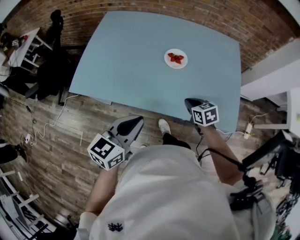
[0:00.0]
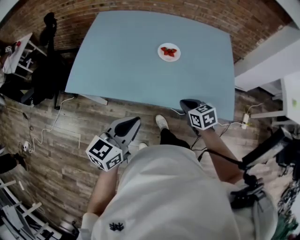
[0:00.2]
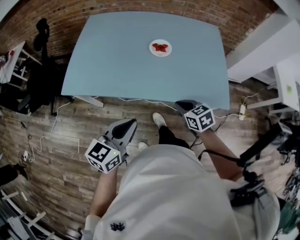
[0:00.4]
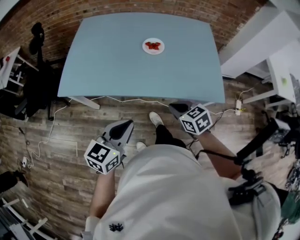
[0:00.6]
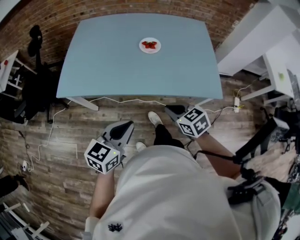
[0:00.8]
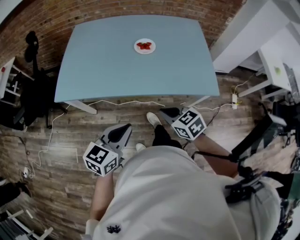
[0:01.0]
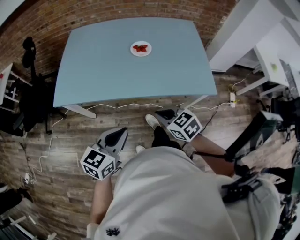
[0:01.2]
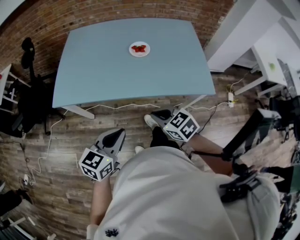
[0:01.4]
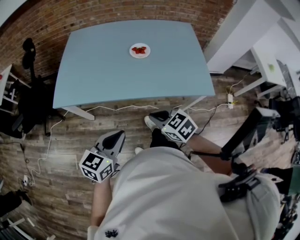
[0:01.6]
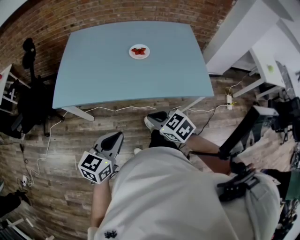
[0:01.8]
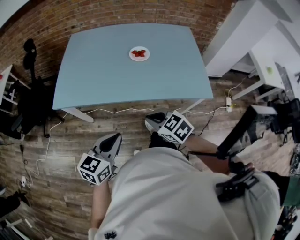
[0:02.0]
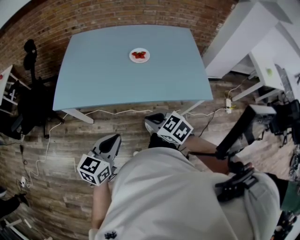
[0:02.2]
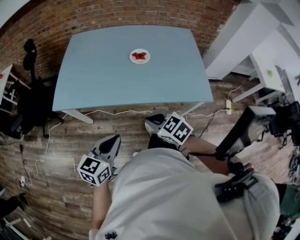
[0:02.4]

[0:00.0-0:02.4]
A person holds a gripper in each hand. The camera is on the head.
0:00.0 to 0:01.2: The left gripper moves backward, roughly 15 cm, while the right gripper goes roughly 20 cm backward.
0:01.2 to 0:02.4: The grippers make only small movements.

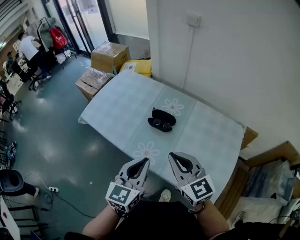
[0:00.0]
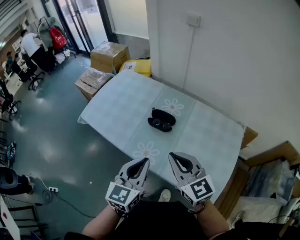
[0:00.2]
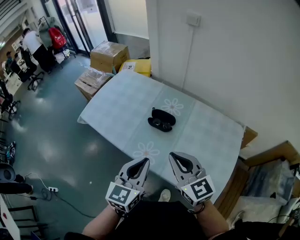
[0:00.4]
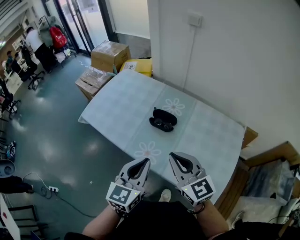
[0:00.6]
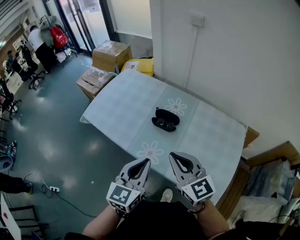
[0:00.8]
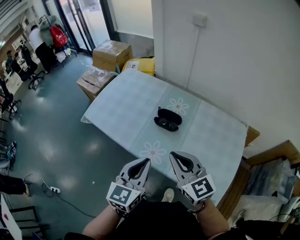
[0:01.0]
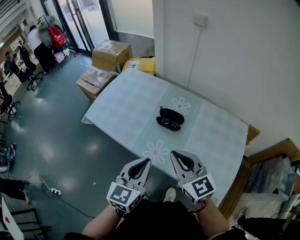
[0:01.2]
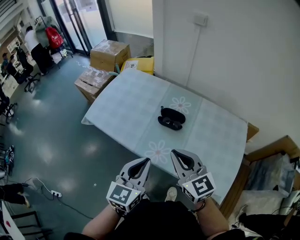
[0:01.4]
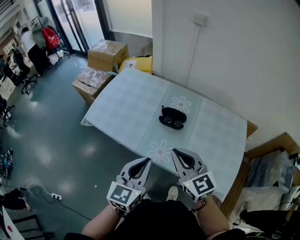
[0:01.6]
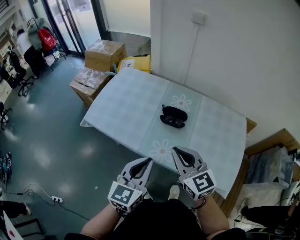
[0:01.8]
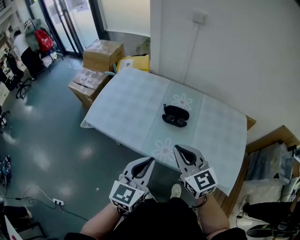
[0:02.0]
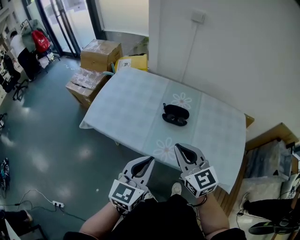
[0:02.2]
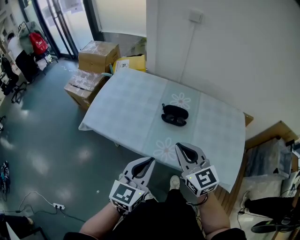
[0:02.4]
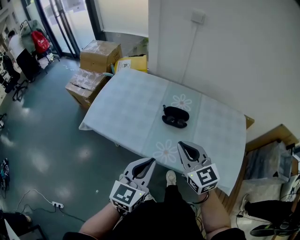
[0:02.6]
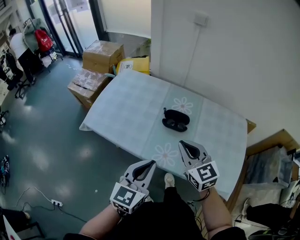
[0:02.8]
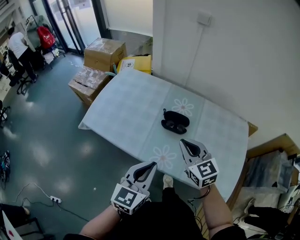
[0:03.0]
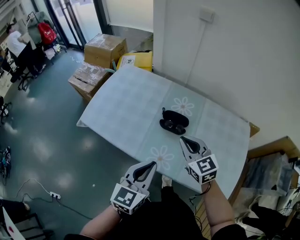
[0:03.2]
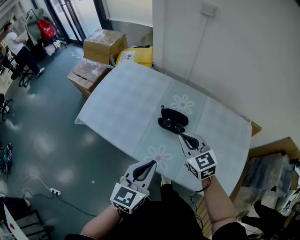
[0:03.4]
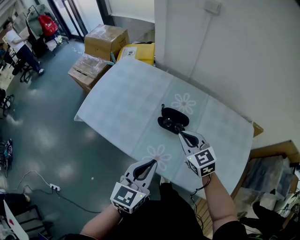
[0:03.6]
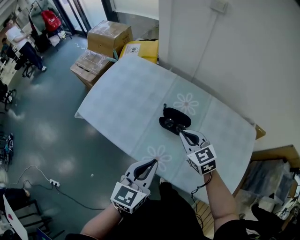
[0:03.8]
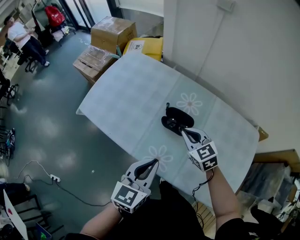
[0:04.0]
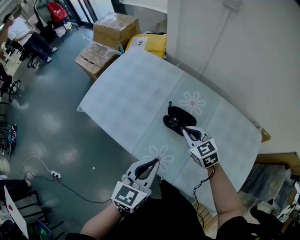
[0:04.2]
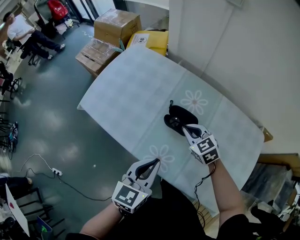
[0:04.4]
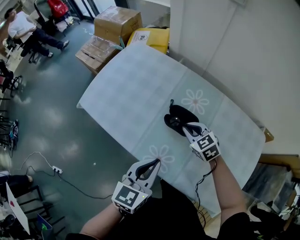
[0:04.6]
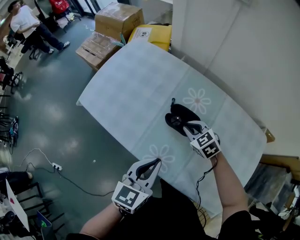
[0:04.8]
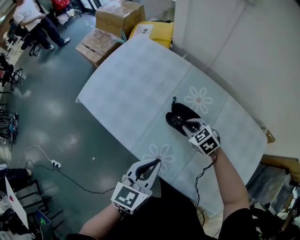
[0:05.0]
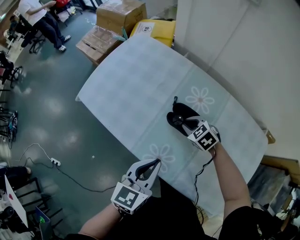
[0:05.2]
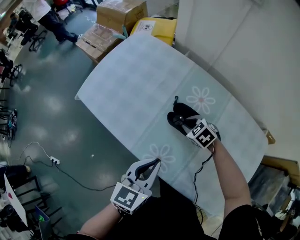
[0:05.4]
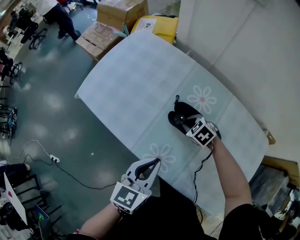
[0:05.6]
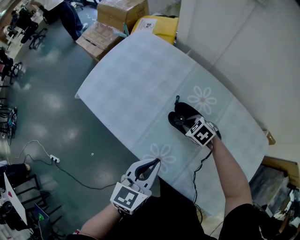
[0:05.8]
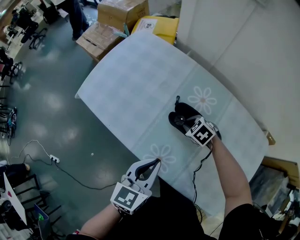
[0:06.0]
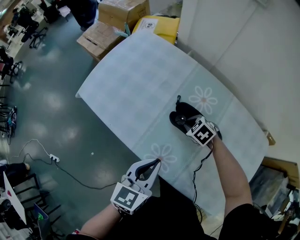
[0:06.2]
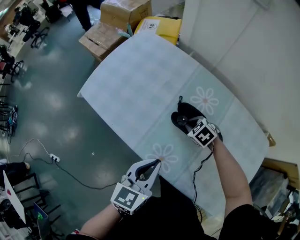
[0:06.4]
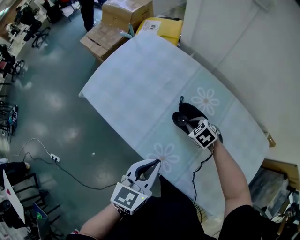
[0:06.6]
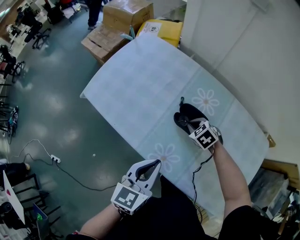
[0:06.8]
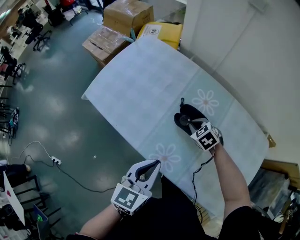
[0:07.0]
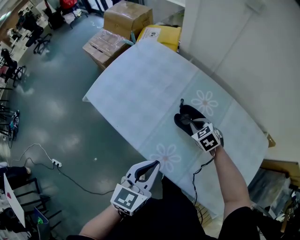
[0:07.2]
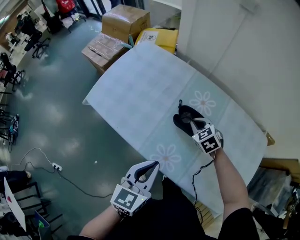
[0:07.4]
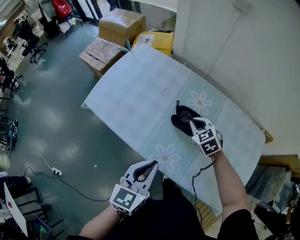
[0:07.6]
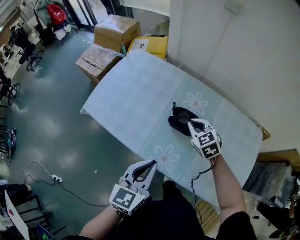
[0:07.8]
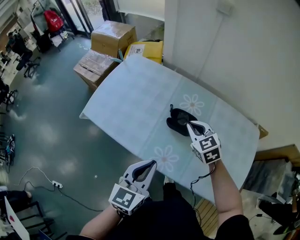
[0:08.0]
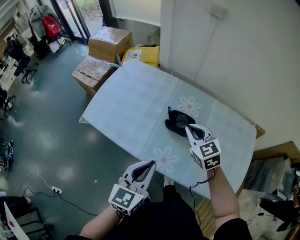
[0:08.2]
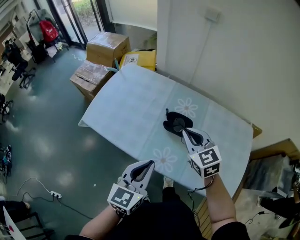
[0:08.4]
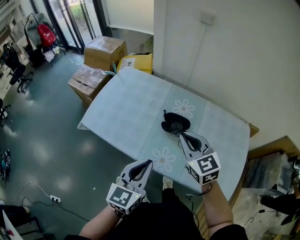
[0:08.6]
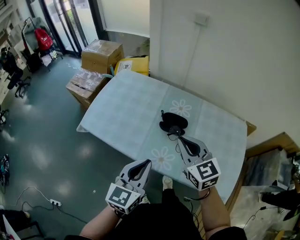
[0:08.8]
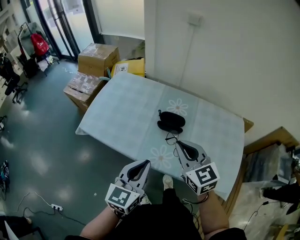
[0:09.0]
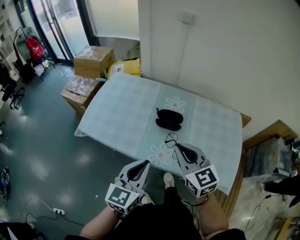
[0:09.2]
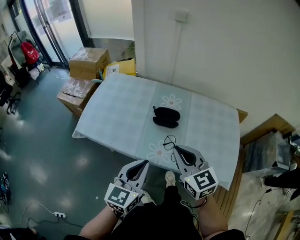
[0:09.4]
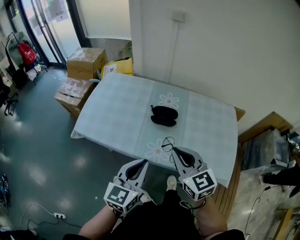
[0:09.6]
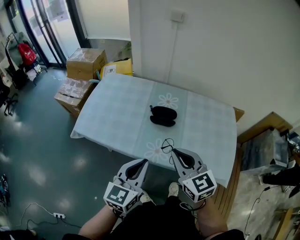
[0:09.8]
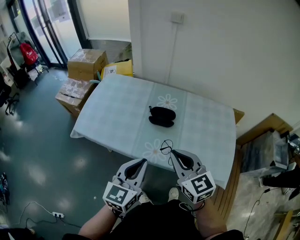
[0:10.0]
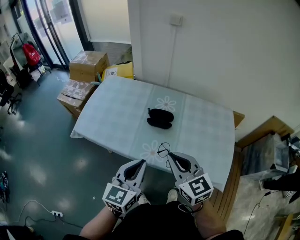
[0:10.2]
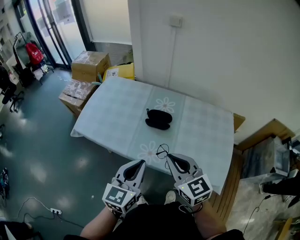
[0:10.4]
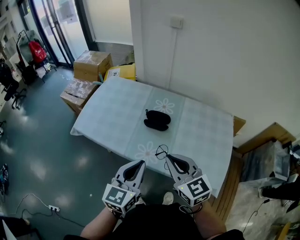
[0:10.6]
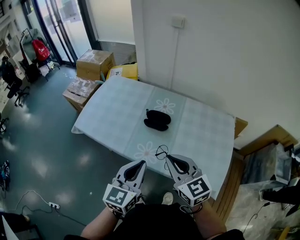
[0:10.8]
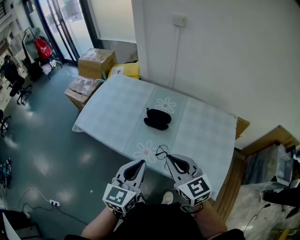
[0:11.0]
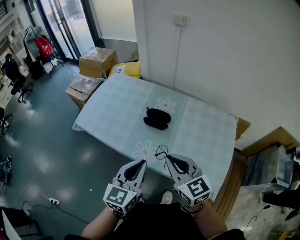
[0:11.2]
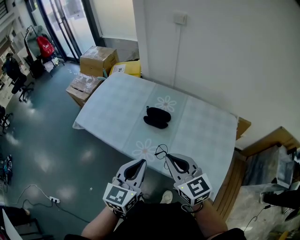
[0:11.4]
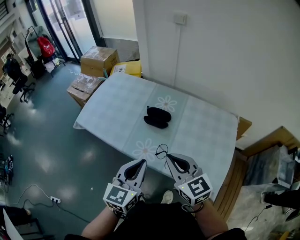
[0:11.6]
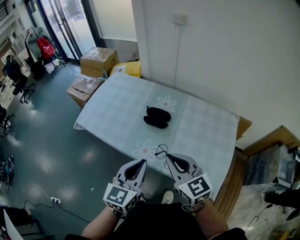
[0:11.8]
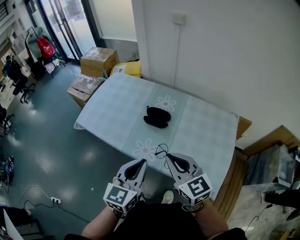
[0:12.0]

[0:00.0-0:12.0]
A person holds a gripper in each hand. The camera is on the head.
0:00.0 to 0:01.6: Both grippers move to the left, about 10 cm.
0:01.6 to 0:03.0: The right gripper is displaced forward by about 10 cm.
0:03.0 to 0:04.4: The left gripper travels forward, downward and to the right by roughly 10 cm; the right gripper heads downward and forward, covering roughly 20 cm, and swivels about 30 degrees.
0:04.4 to 0:06.0: The right gripper is displaced downward by about 10 cm, and turns by approximately 30 degrees.
0:06.0 to 0:07.6: The left gripper shifts by roughly 5 cm. The right gripper is displaced upward by approximately 10 cm, and swivels approximately 30 degrees.
0:07.6 to 0:09.0: The left gripper is displaced upward and backward by some 10 cm. Meanwhile the right gripper moves upward and backward, approximately 30 cm, and tilts its fingers roughly 30 degrees upward.
0:09.0 to 0:10.4: The right gripper travels backward by roughly 10 cm. The left gripper moves roughly 5 cm.
0:10.4 to 0:12.0: Both grippers move to the right, some 5 cm.

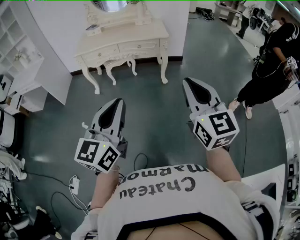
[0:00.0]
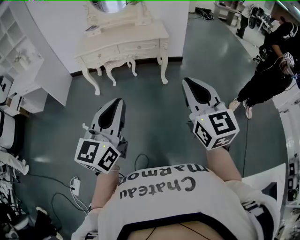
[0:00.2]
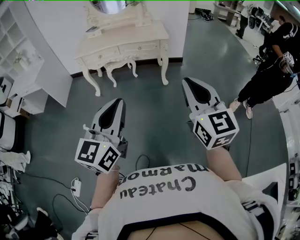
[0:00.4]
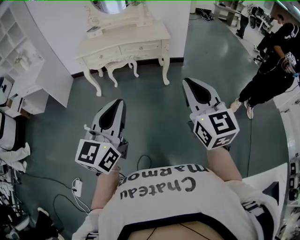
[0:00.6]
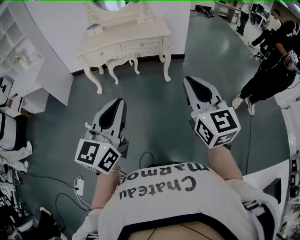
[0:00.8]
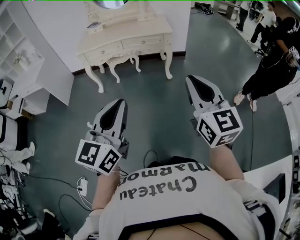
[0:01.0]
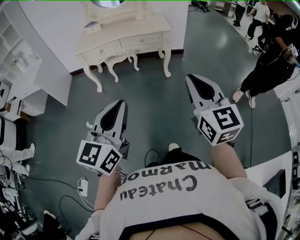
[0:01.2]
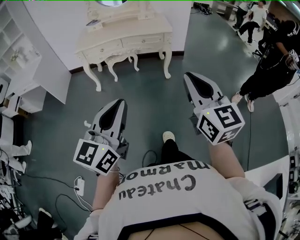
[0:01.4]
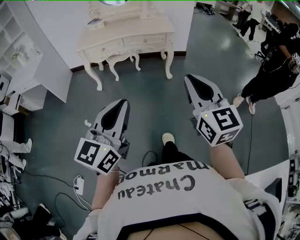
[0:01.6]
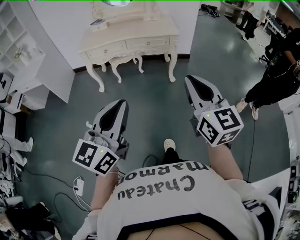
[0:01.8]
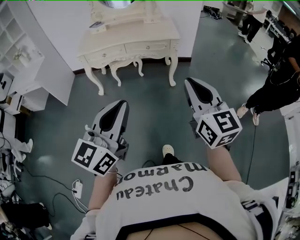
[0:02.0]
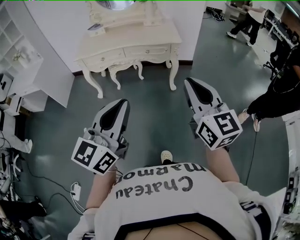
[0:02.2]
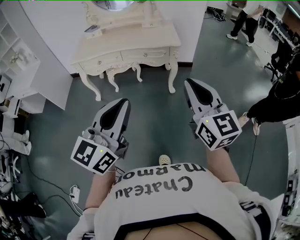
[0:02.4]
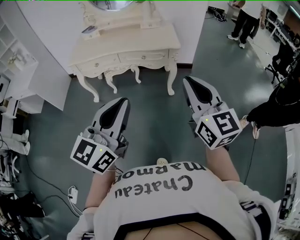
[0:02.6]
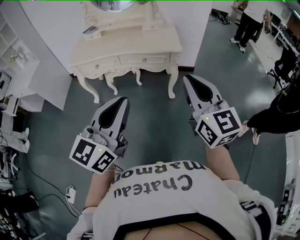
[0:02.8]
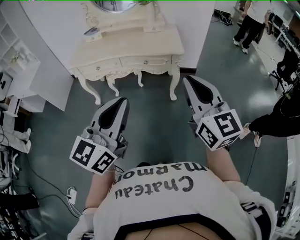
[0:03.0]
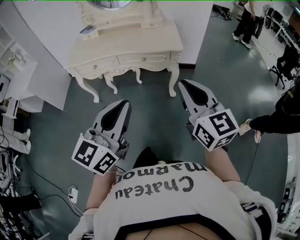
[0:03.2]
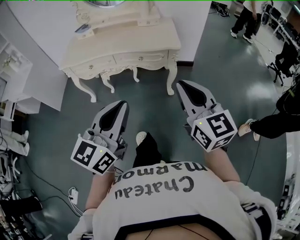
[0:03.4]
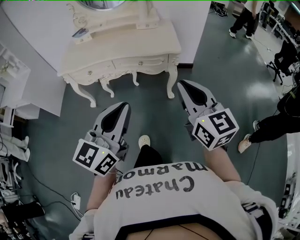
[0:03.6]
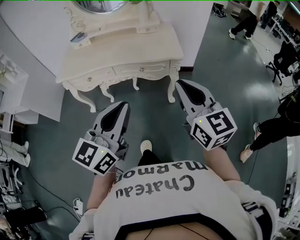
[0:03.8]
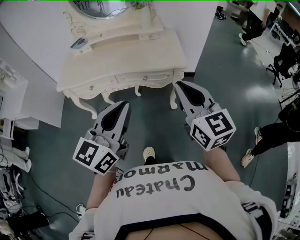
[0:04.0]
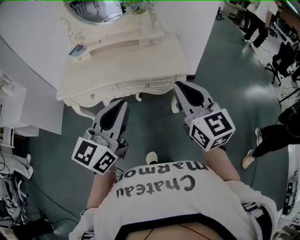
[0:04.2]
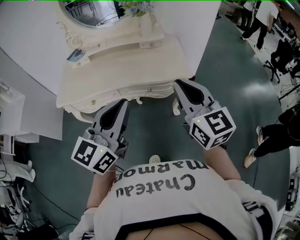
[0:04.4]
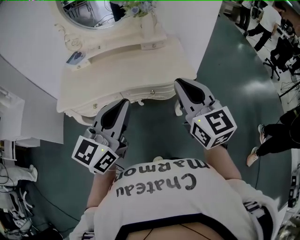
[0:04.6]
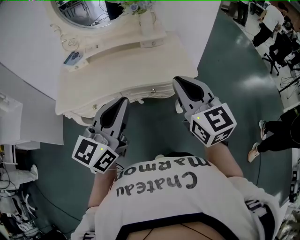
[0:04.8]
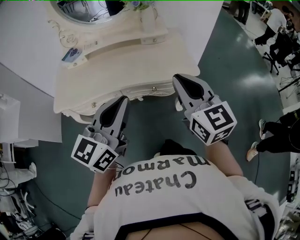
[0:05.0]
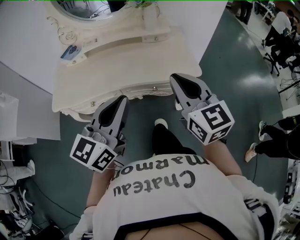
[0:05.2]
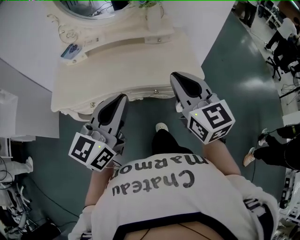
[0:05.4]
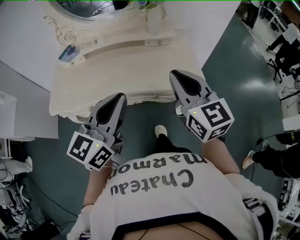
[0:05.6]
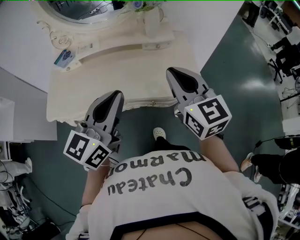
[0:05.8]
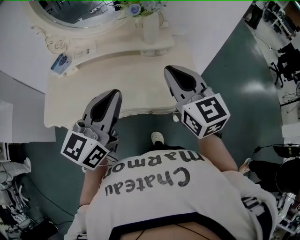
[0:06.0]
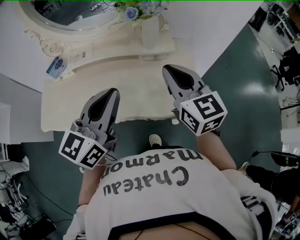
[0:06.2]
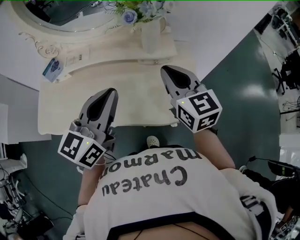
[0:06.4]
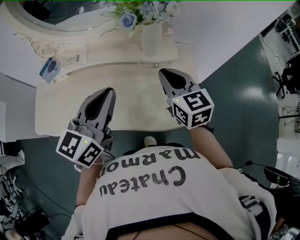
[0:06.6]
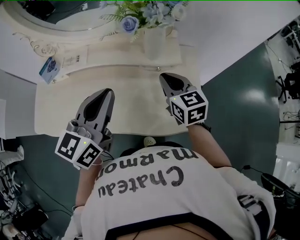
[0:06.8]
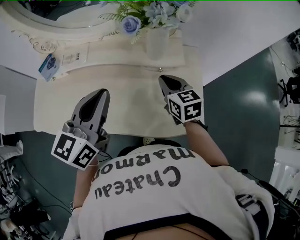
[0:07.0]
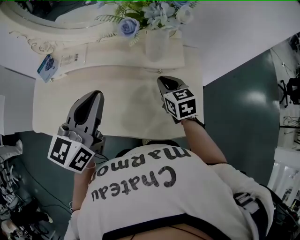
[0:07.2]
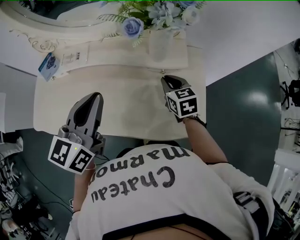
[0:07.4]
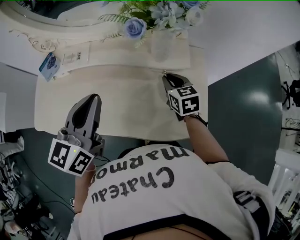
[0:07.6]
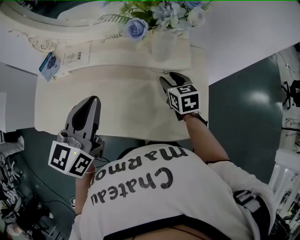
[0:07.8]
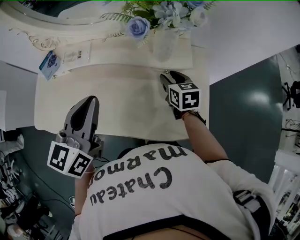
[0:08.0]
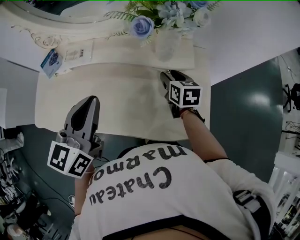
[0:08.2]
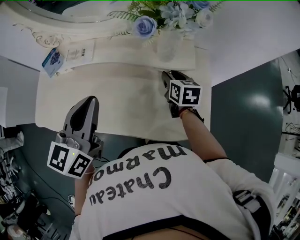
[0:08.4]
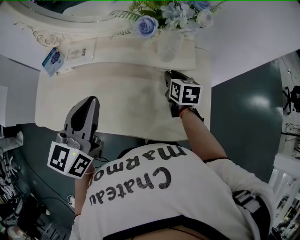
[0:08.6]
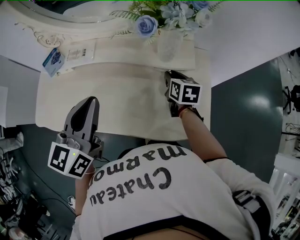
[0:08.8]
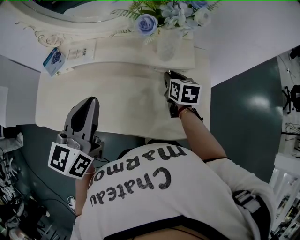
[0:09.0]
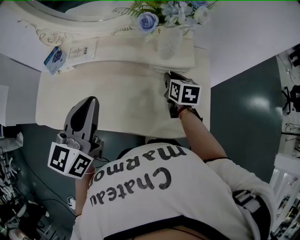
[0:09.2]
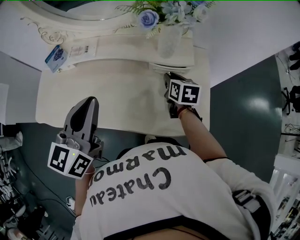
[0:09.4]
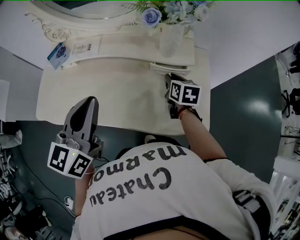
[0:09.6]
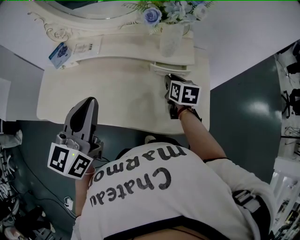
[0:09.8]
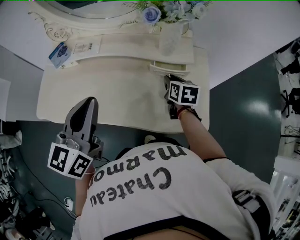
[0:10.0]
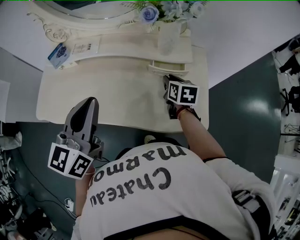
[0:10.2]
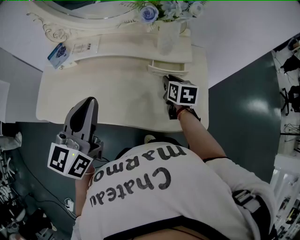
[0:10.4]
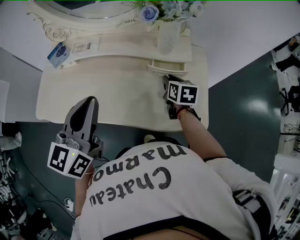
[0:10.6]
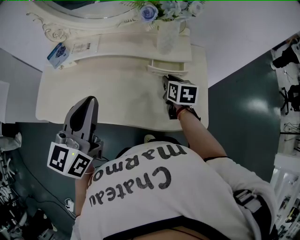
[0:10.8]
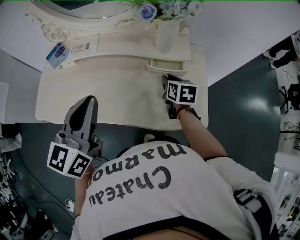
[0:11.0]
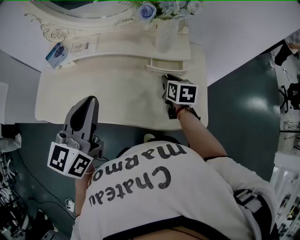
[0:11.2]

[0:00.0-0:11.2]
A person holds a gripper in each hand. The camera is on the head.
0:00.0 to 0:01.6: Both grippers travel together to the left, some 5 cm.
0:01.6 to 0:03.2: The grippers both shift forward by about 30 cm.
0:03.2 to 0:04.8: Both grippers move forward and to the left, approximately 35 cm.
0:04.8 to 0:06.4: The grippers both shift forward by some 30 cm.
0:06.4 to 0:08.0: The left gripper heads forward and to the left, covering approximately 10 cm. Meanwhile the right gripper moves downward and forward, approximately 25 cm, swivels about 30 degrees, and opens its fingers.
0:08.0 to 0:09.6: The left gripper shifts approximately 5 cm backward.
0:09.6 to 0:11.2: There are only small adjustments of the grippers.
